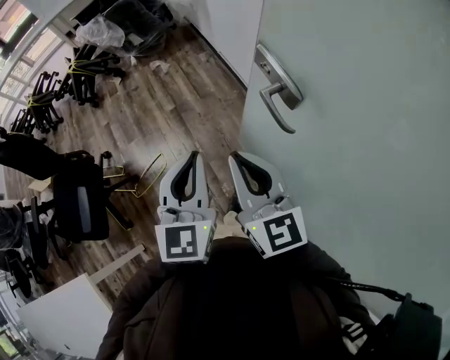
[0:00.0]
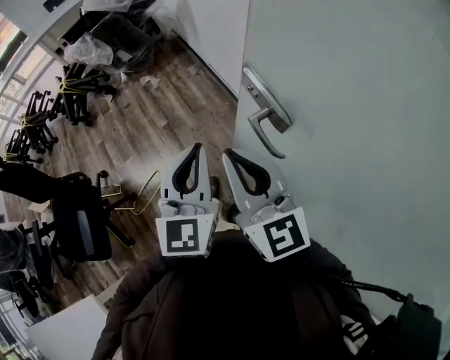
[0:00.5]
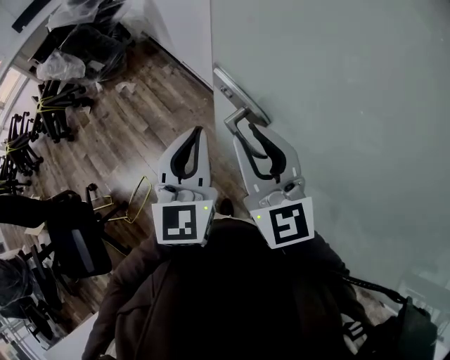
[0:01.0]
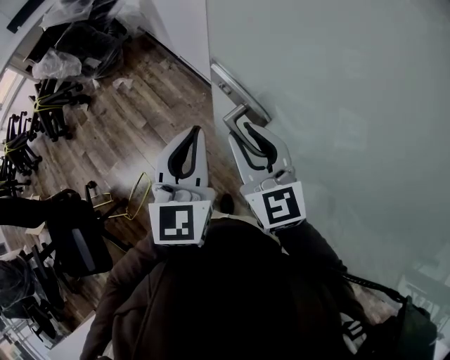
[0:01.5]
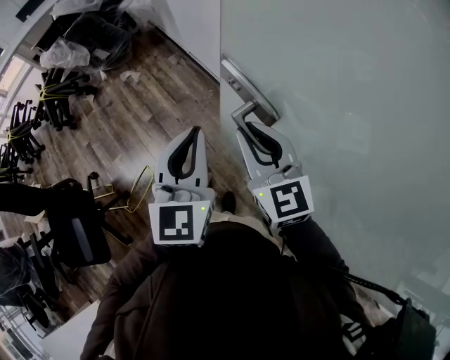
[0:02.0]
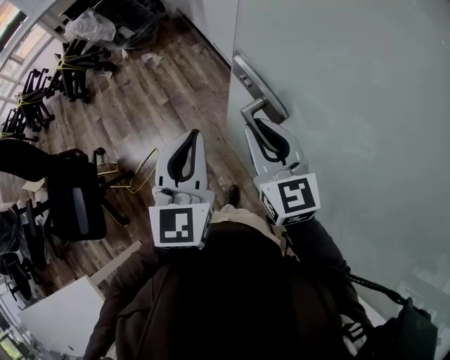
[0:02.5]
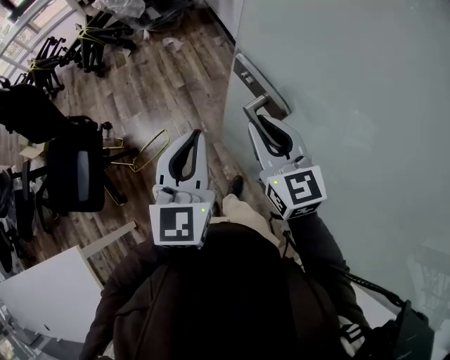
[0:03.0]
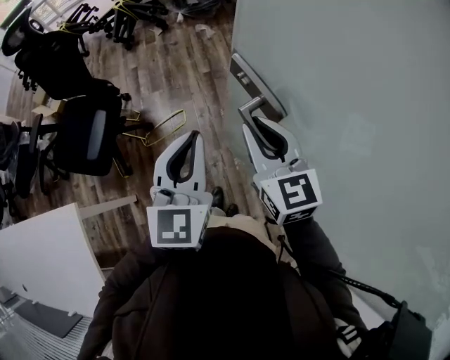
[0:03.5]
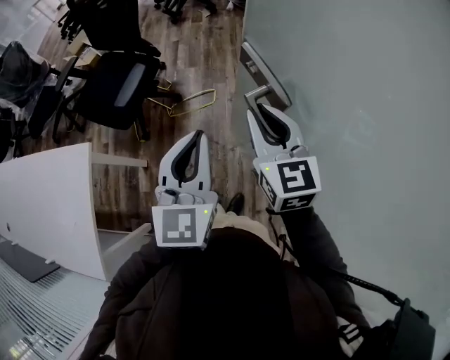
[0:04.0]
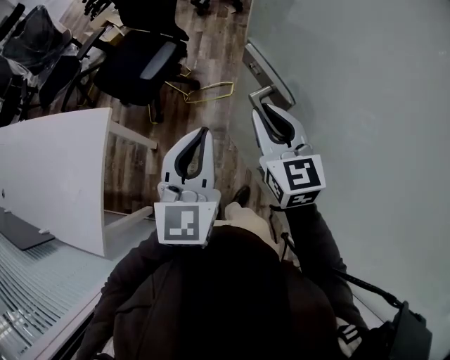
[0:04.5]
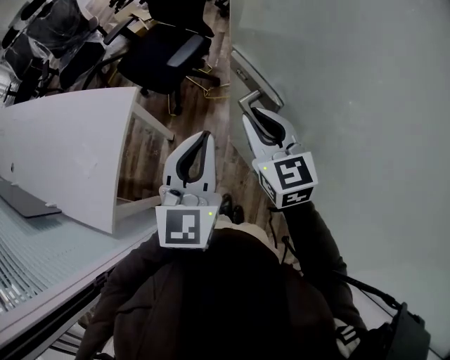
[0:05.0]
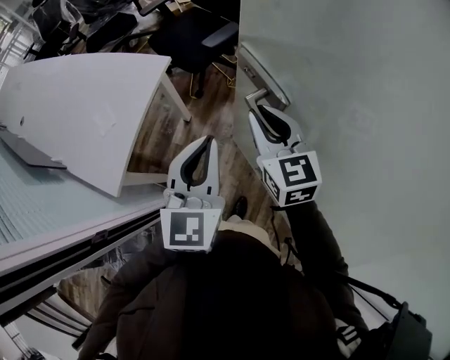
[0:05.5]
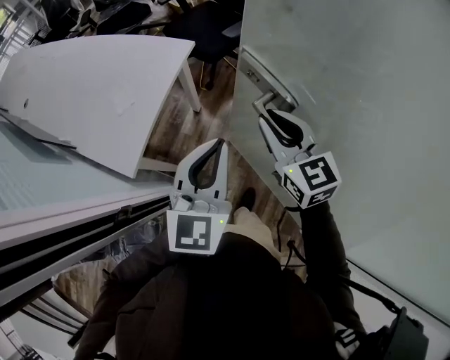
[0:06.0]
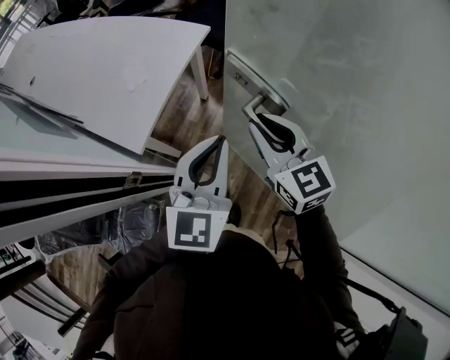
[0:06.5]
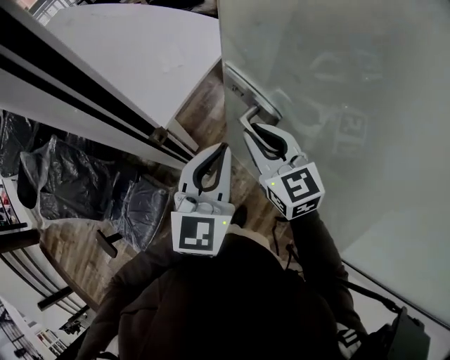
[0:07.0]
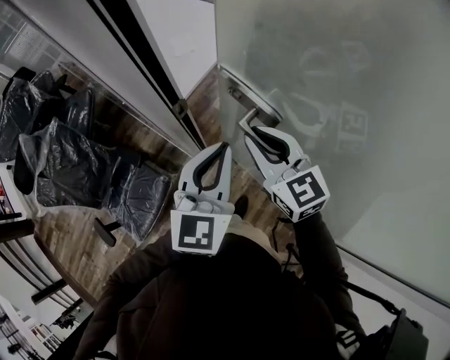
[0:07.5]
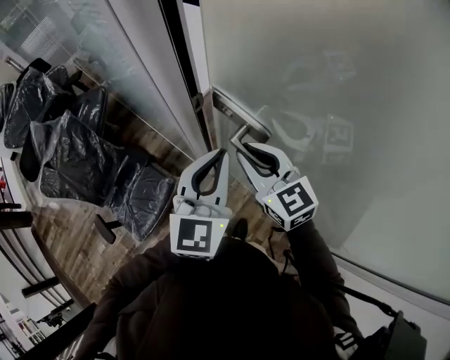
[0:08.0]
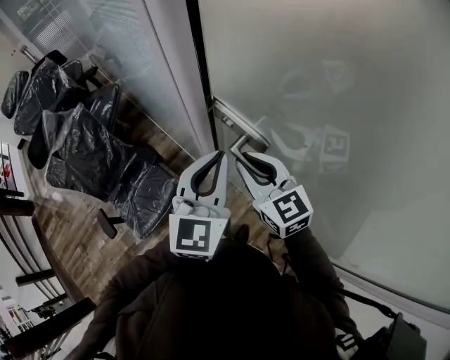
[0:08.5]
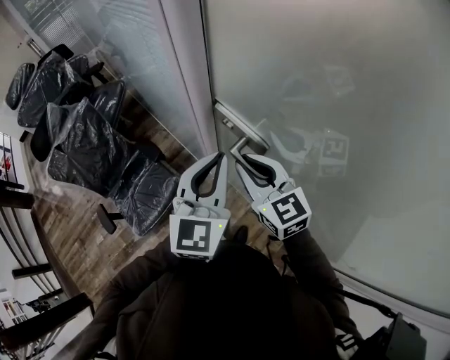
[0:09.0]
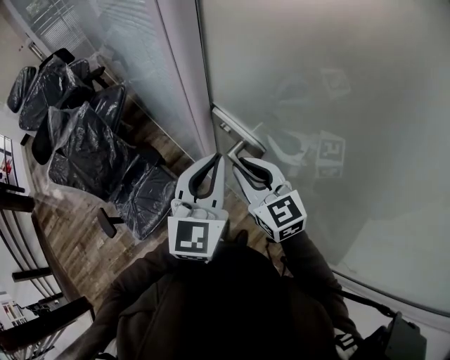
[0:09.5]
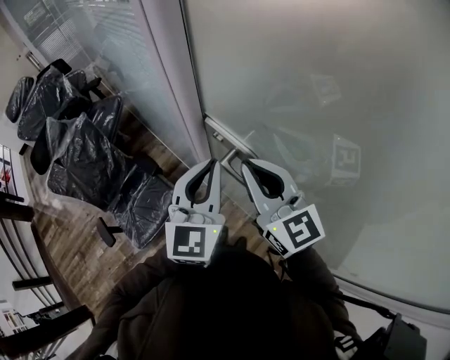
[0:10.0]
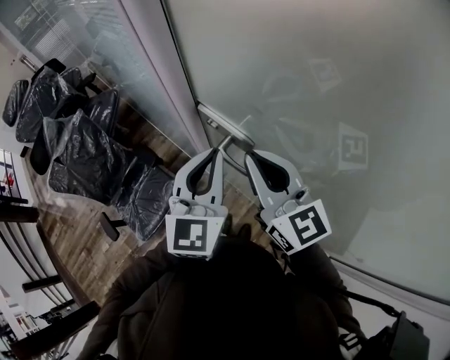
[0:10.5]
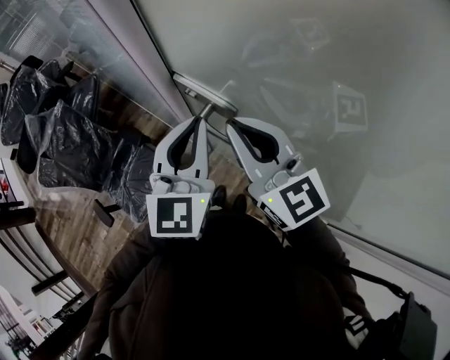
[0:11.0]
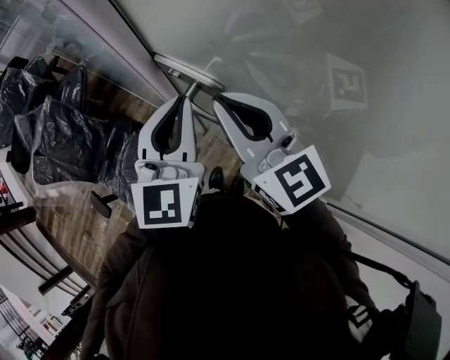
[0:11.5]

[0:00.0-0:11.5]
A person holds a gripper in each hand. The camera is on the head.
0:00.0 to 0:02.0: Both grippers move forward and to the right, about 15 cm.
0:02.0 to 0:04.0: The two grippers travel together, some 40 cm. The left gripper changes its angle by roughly 40 degrees. Meanwhile the right gripper turns by about 30 degrees.
0:04.0 to 0:06.0: The left gripper ends up some 40 cm from where it was; the right gripper changes place by roughly 40 cm, and changes its angle by about 30 degrees.
0:06.0 to 0:07.5: The left gripper travels backward and to the left by some 20 cm. Meanwhile the right gripper shifts roughly 25 cm to the left and backward, and rotates some 20 degrees.
0:07.5 to 0:09.5: Both grippers travel together to the left, about 5 cm.
0:09.5 to 0:11.5: The right gripper heads upward, covering about 10 cm.

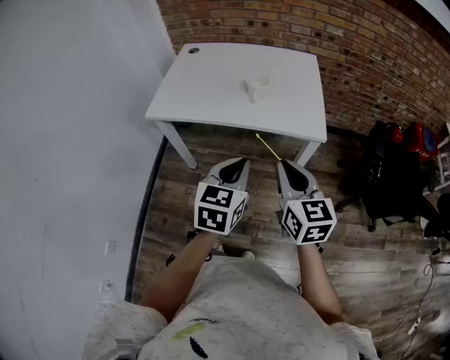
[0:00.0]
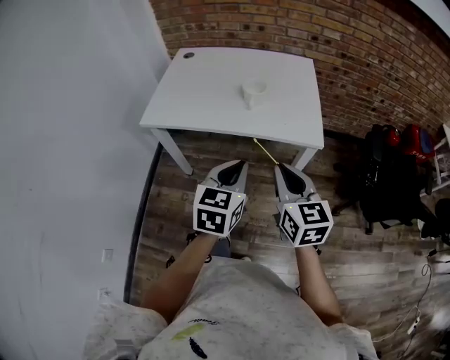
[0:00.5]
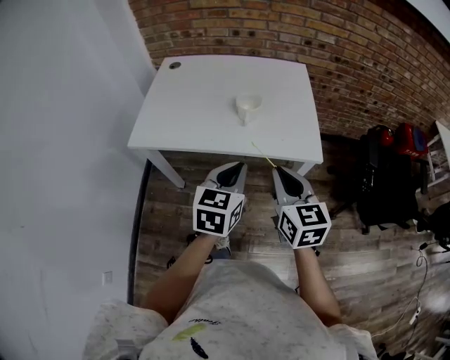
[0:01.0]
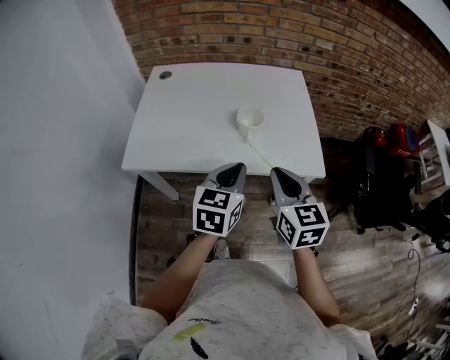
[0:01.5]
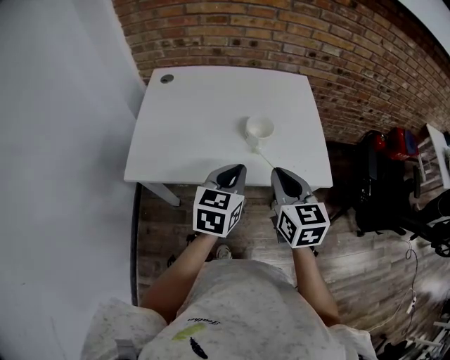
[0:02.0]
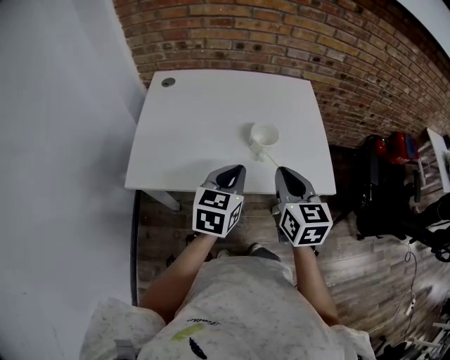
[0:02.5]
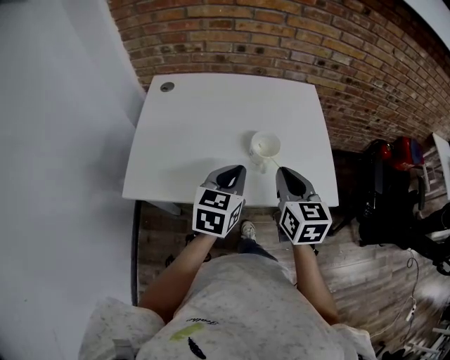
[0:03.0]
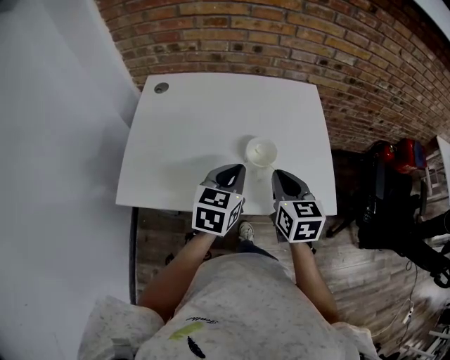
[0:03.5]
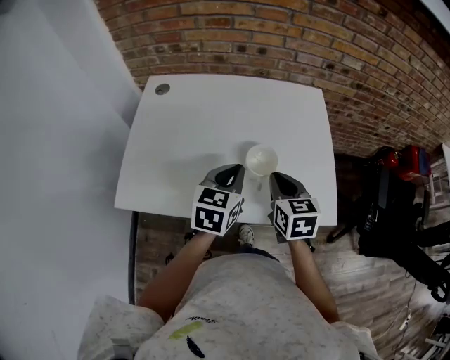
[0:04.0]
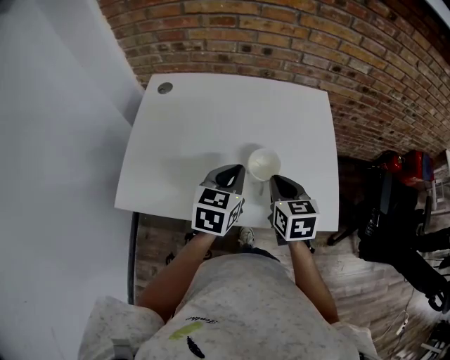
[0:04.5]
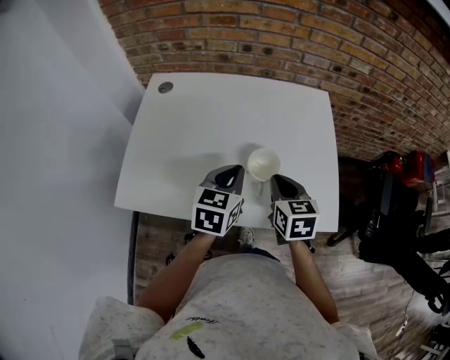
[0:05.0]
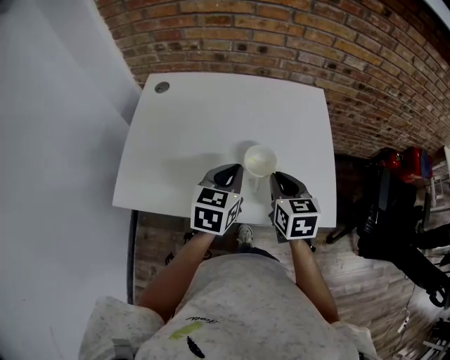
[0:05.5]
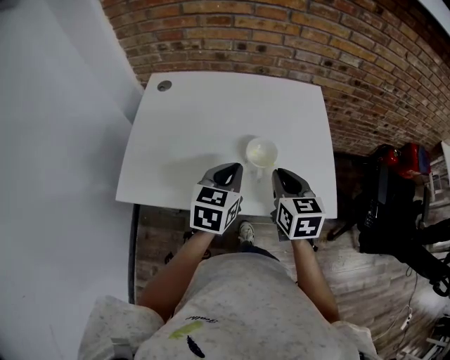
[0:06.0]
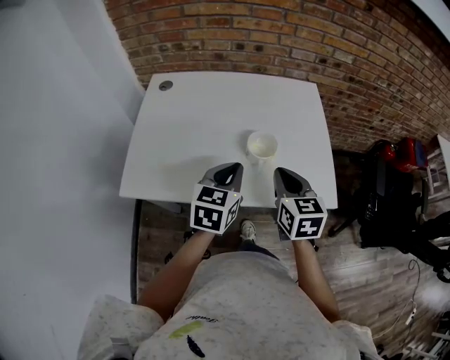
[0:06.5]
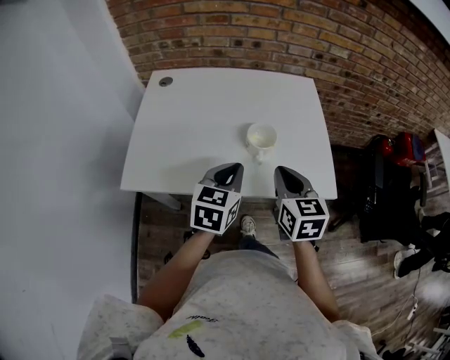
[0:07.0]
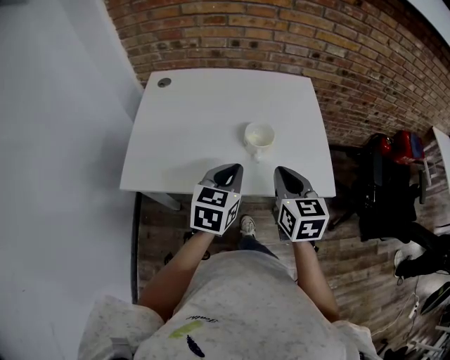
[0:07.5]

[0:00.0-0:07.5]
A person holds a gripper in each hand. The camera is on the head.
0:00.0 to 0:02.0: Both grippers travel together forward and to the left, roughly 30 cm.
0:02.0 to 0:04.0: The right gripper is displaced forward and downward by some 20 cm. Meanwhile the left gripper travels forward by approximately 15 cm.
0:04.0 to 0:05.5: The grippers move only a little.
0:05.5 to 0:07.5: The left gripper is displaced backward by roughly 10 cm, while the right gripper is displaced backward and upward by some 15 cm.

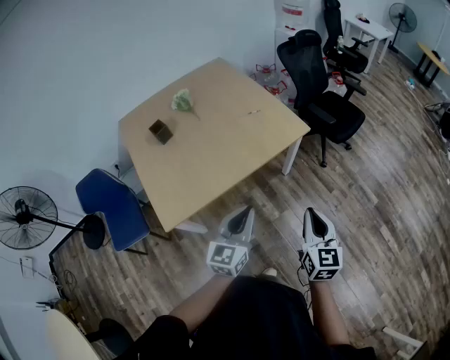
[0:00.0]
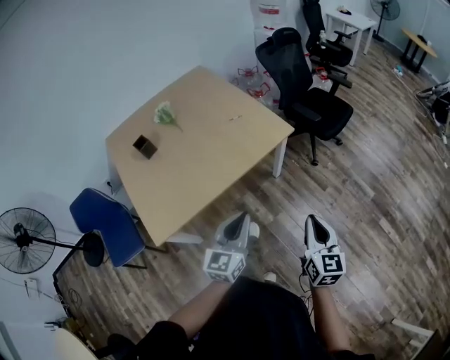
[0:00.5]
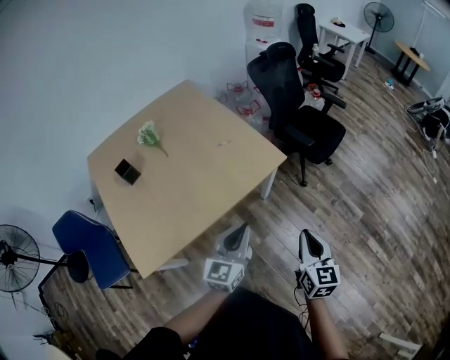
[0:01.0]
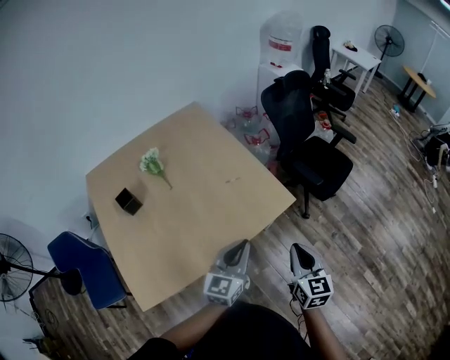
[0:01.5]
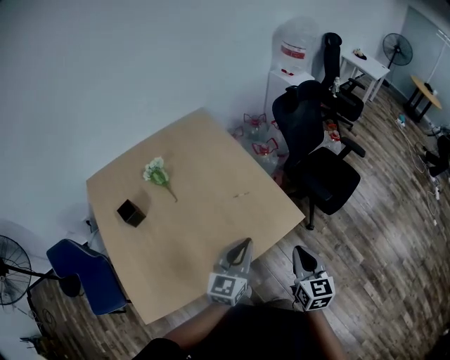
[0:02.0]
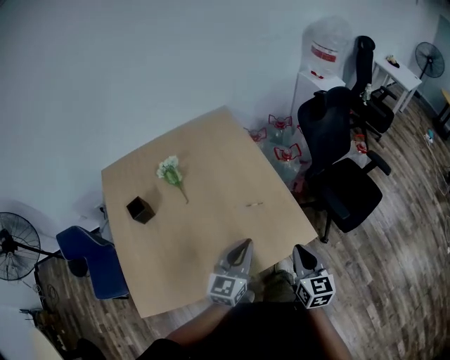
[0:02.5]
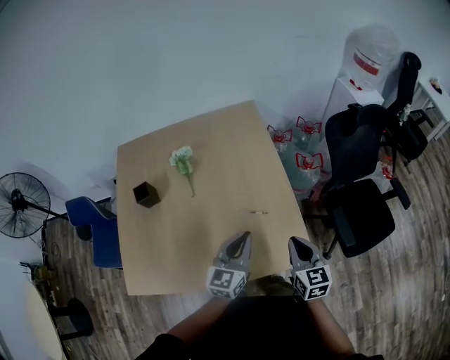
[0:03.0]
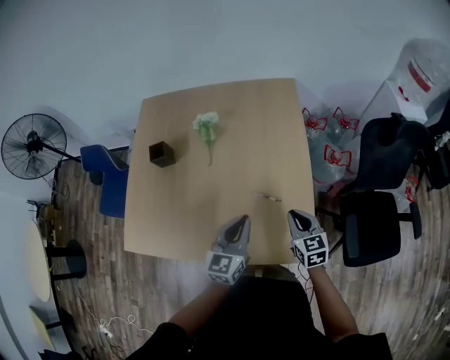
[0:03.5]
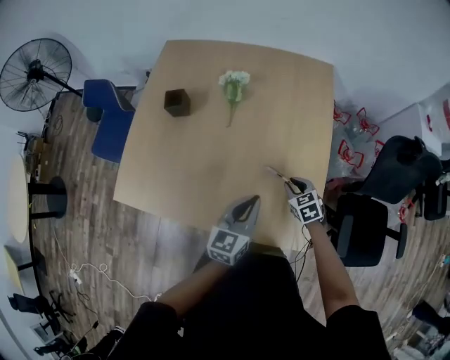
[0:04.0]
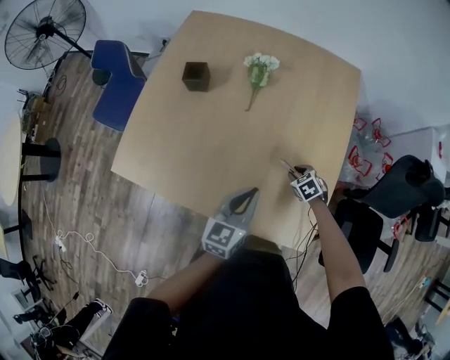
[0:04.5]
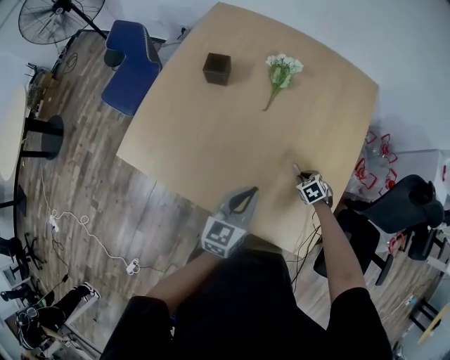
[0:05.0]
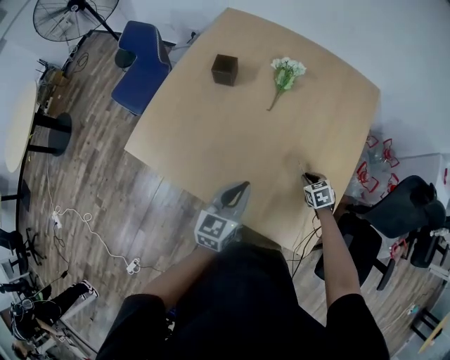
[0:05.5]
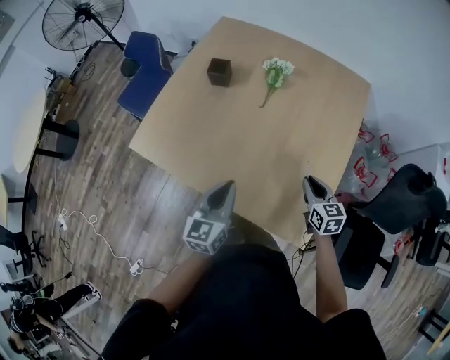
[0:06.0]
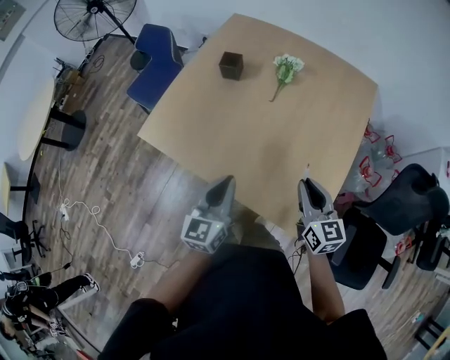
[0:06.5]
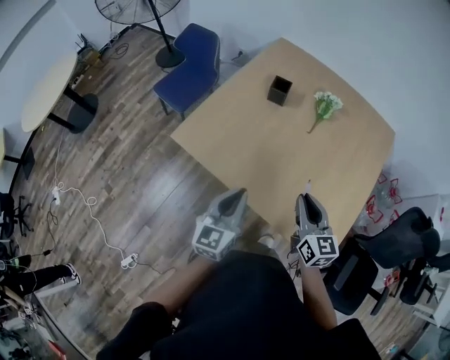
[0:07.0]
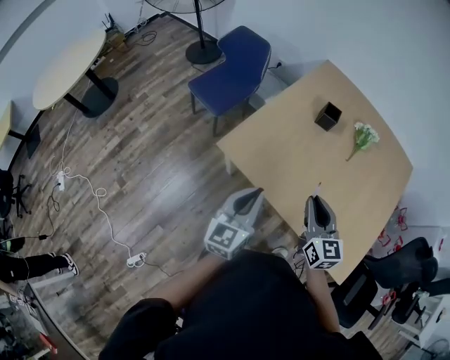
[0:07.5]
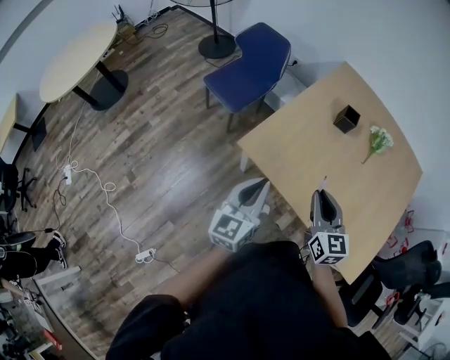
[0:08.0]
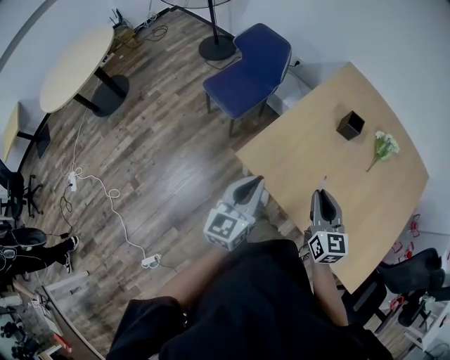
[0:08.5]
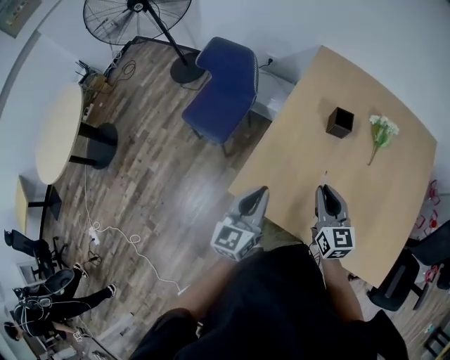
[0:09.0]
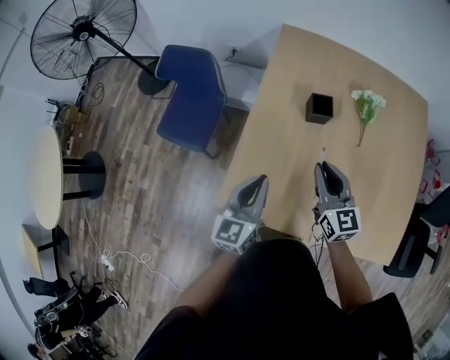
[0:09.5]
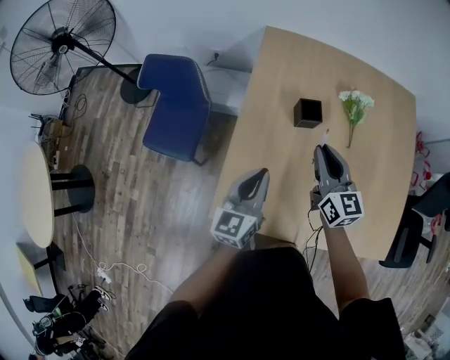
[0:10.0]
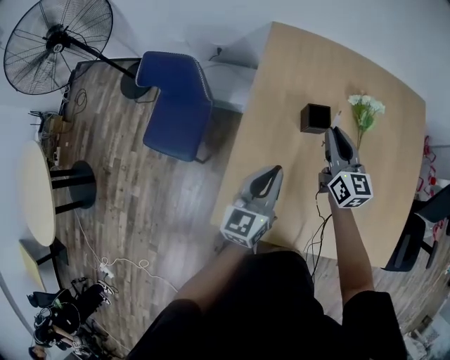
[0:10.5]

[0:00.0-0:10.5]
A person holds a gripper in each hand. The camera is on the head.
0:00.0 to 0:02.0: Both grippers are carried forward, about 40 cm.
0:02.0 to 0:04.0: The right gripper moves roughly 40 cm, and turns by some 70 degrees. The left gripper shifts by roughly 20 cm, and changes its angle by approximately 50 degrees.
0:04.0 to 0:06.5: The left gripper heads to the left and backward, covering roughly 20 cm, and turns by some 30 degrees. Meanwhile the right gripper is displaced upward, backward and to the left by roughly 25 cm, and tilts its fingers roughly 30 degrees upward.
0:06.5 to 0:08.5: Both grippers are carried to the left, some 50 cm.
0:08.5 to 0:10.5: Both grippers are carried about 40 cm. The left gripper rotates roughly 30 degrees; the right gripper rotates roughly 30 degrees.
